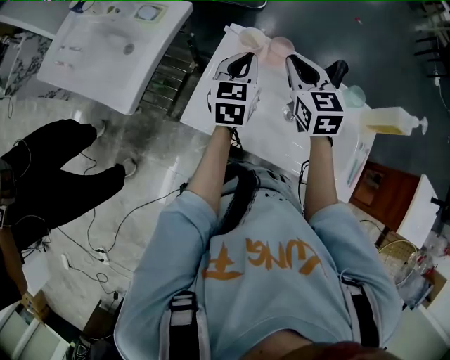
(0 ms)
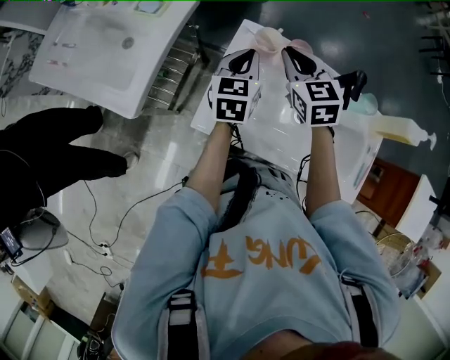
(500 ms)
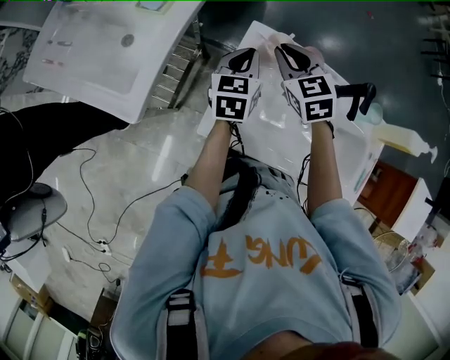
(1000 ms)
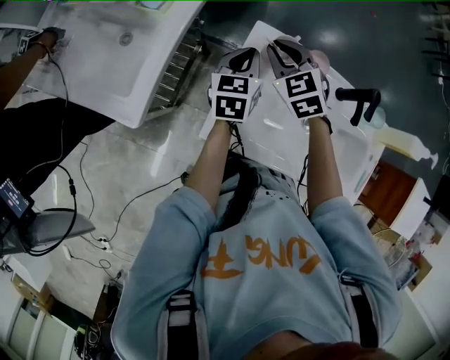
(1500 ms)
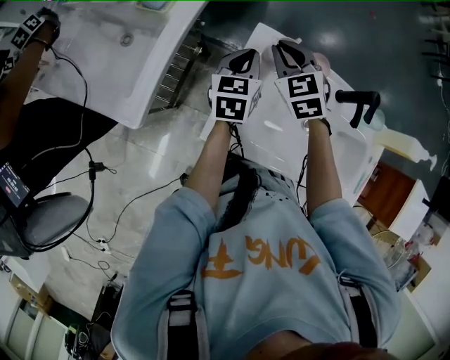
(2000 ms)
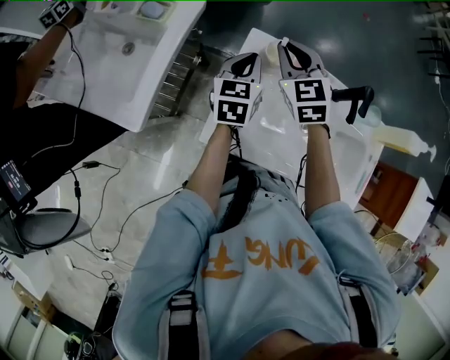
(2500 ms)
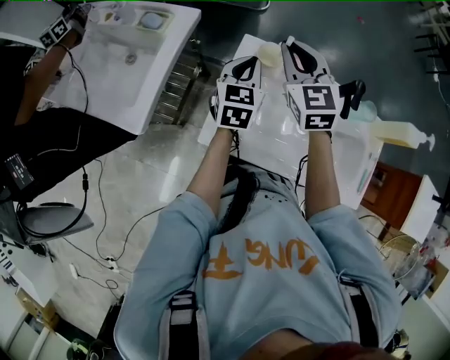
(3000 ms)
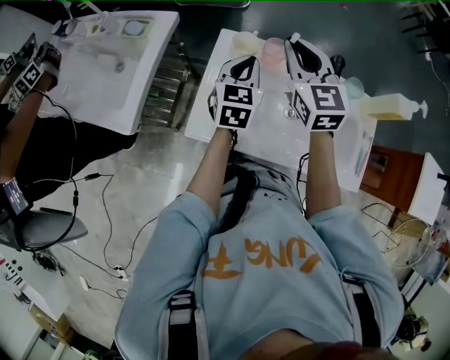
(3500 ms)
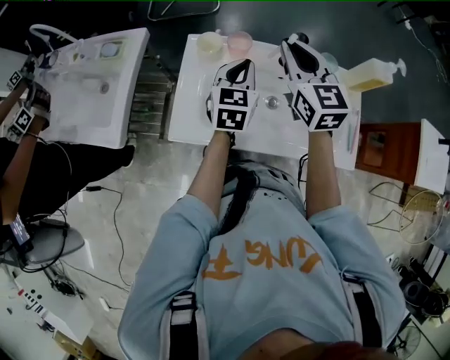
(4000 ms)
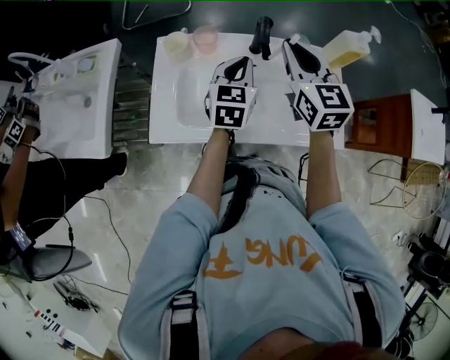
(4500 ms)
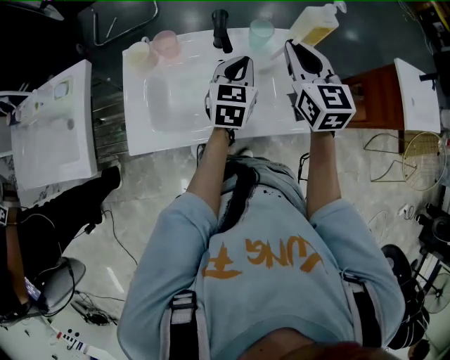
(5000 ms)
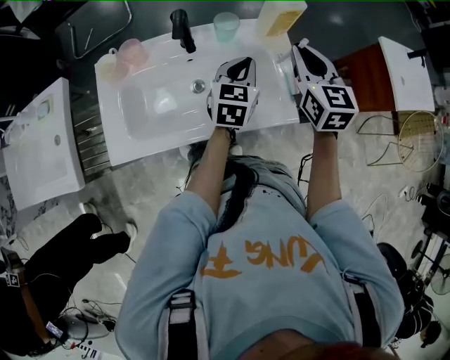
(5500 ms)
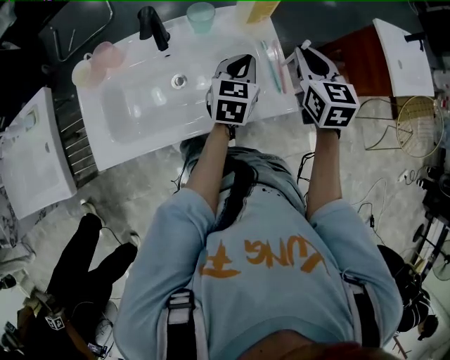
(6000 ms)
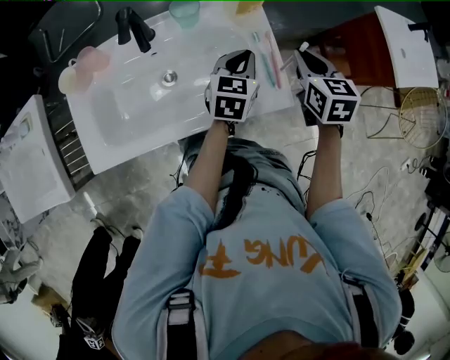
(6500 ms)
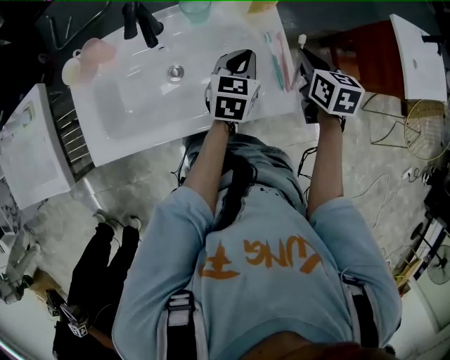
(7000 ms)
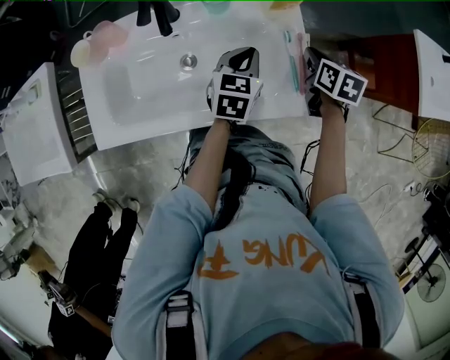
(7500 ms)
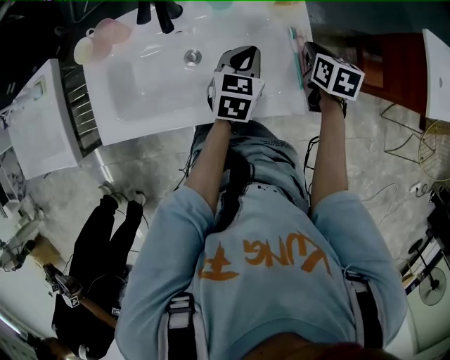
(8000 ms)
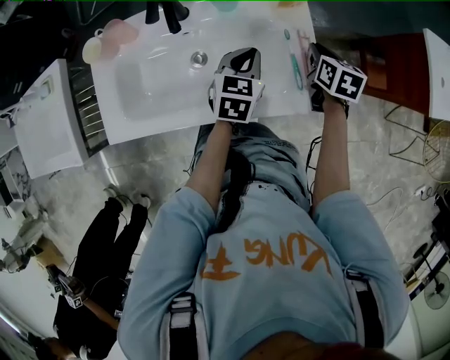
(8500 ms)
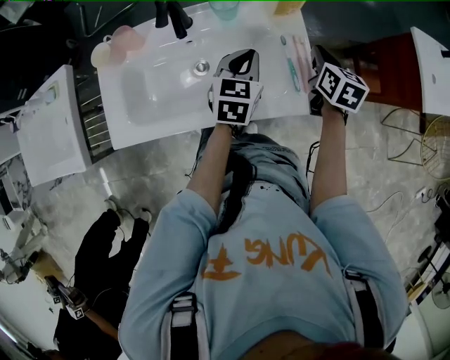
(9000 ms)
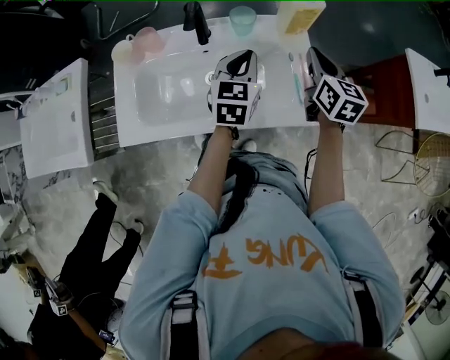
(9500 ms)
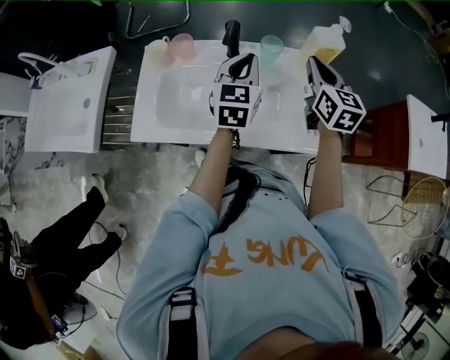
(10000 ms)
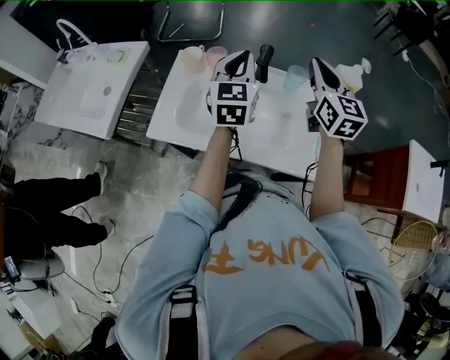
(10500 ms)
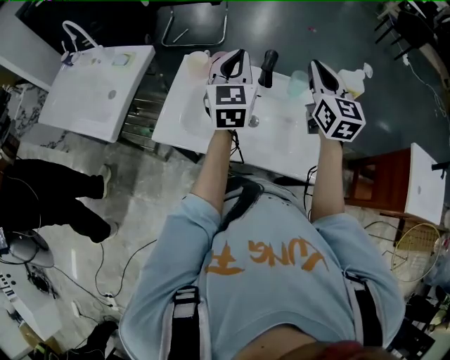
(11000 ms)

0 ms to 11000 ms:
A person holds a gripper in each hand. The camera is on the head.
0 ms to 2000 ms: The two grippers go roughly 15 cm to the left, forward and downward. The right gripper swivels some 20 degrees.
2000 ms to 3500 ms: The right gripper shifts approximately 20 cm upward, to the right and backward, and rotates about 30 degrees; the left gripper travels to the right, upward and backward by some 15 cm.
3500 ms to 5500 ms: The right gripper moves roughly 40 cm, and changes its angle by approximately 30 degrees. Meanwhile the left gripper moves some 40 cm, and turns by some 30 degrees.
5500 ms to 7500 ms: The left gripper moves downward, about 10 cm. Meanwhile the right gripper heads downward and to the right, covering approximately 25 cm, and rotates approximately 40 degrees.
7500 ms to 9000 ms: The right gripper heads upward, covering roughly 5 cm. Meanwhile the left gripper shifts by some 5 cm.
9000 ms to 11000 ms: The left gripper moves roughly 35 cm, and turns by roughly 40 degrees; the right gripper moves some 35 cm, and tips its fingers upward by approximately 30 degrees.

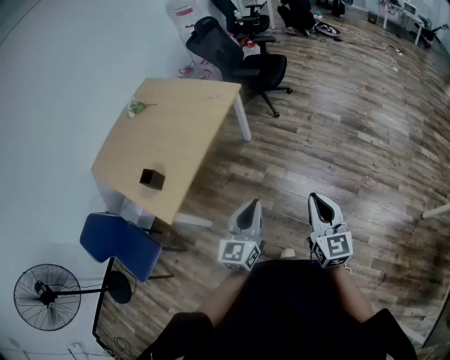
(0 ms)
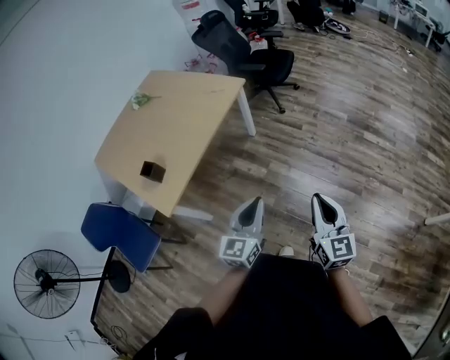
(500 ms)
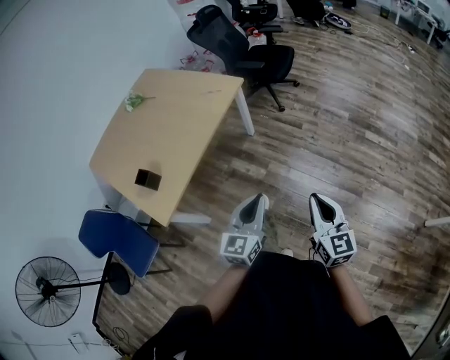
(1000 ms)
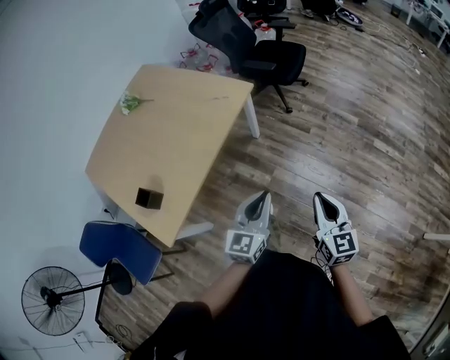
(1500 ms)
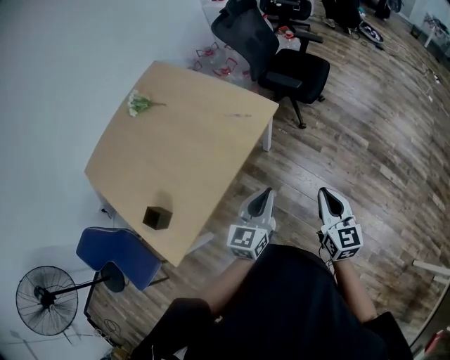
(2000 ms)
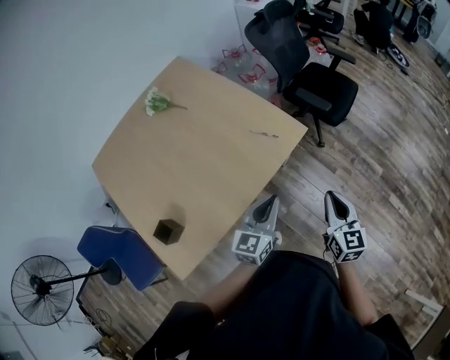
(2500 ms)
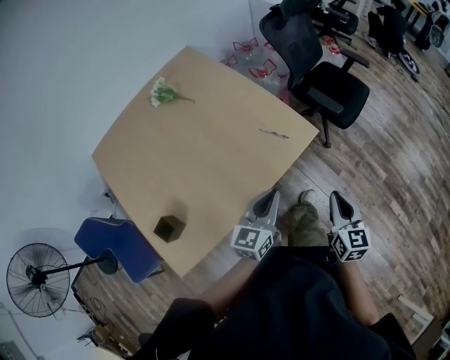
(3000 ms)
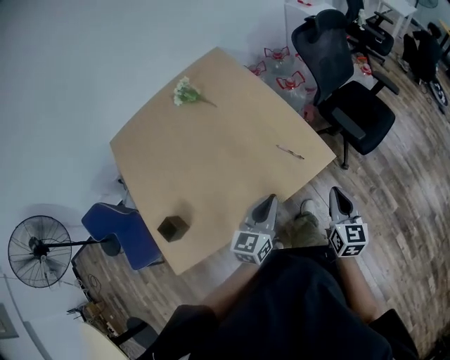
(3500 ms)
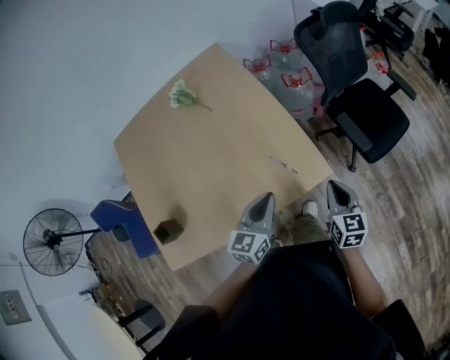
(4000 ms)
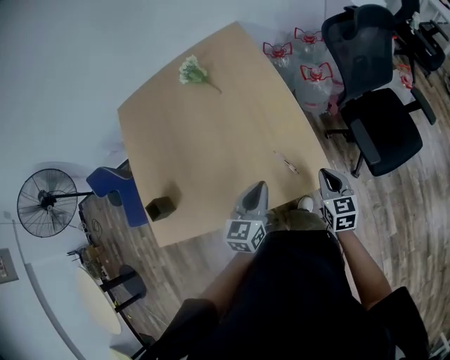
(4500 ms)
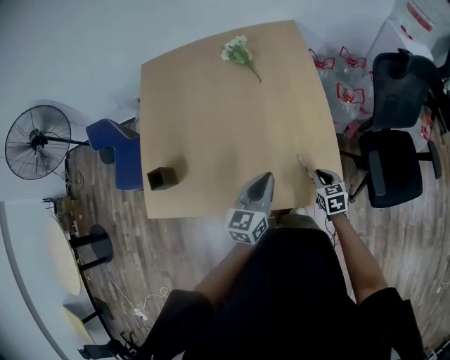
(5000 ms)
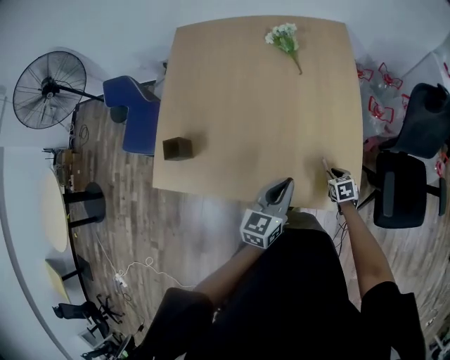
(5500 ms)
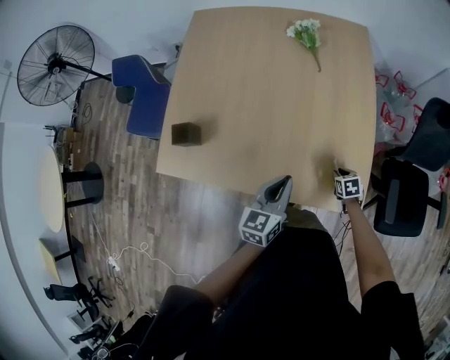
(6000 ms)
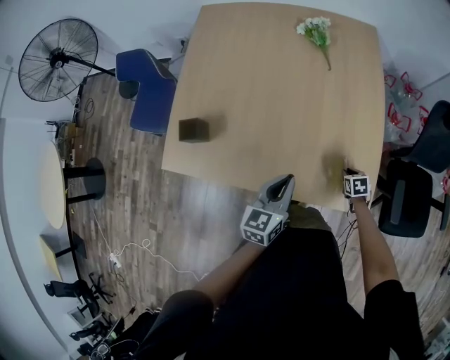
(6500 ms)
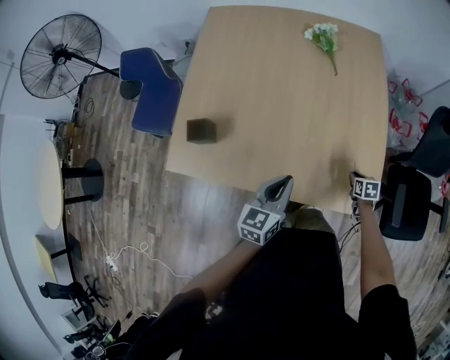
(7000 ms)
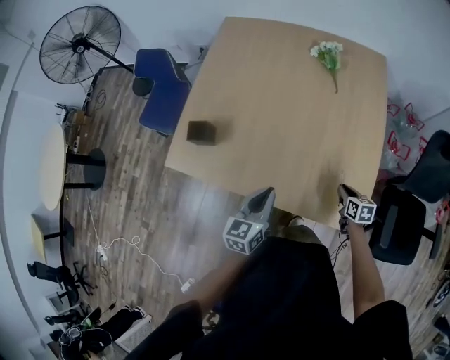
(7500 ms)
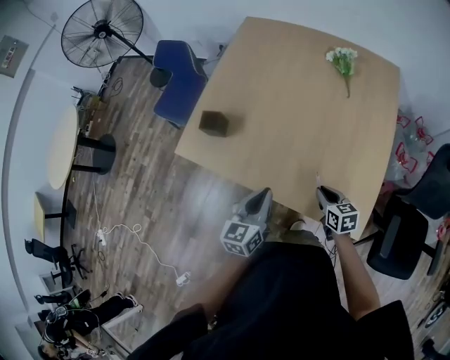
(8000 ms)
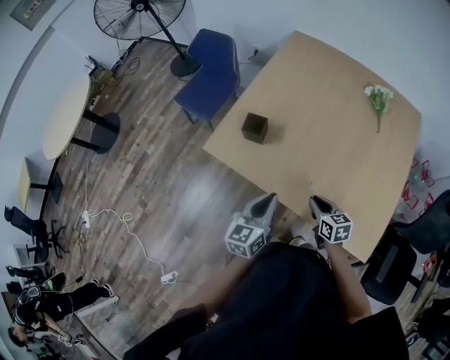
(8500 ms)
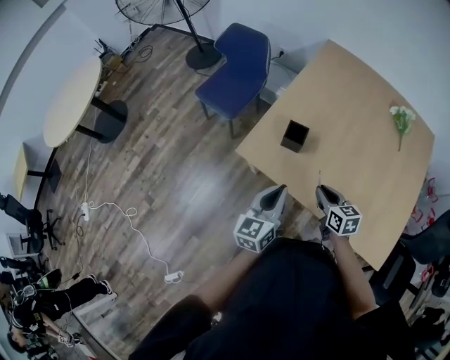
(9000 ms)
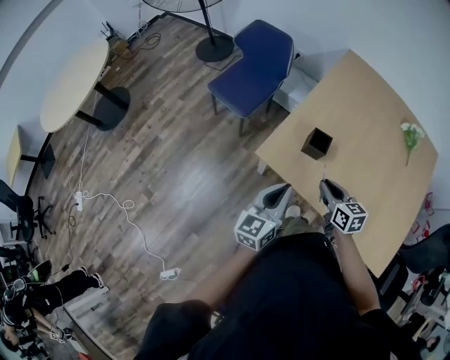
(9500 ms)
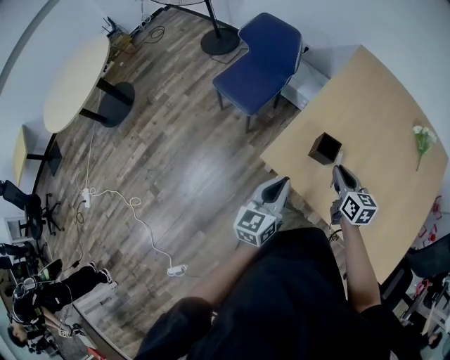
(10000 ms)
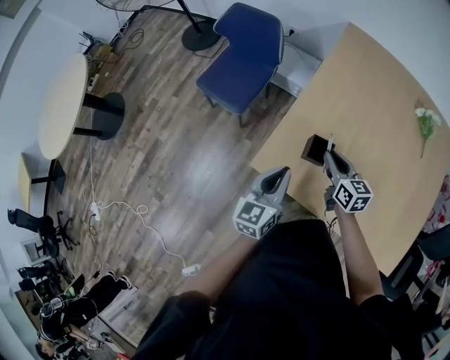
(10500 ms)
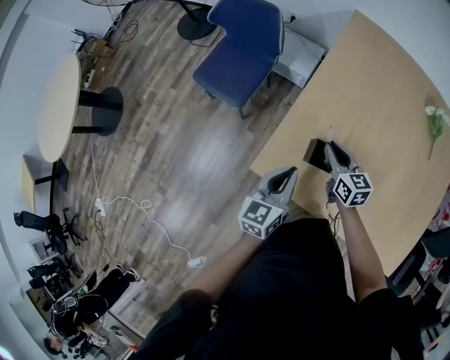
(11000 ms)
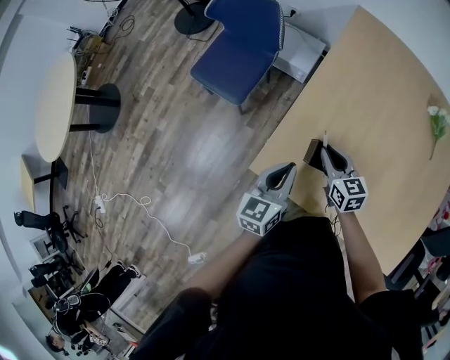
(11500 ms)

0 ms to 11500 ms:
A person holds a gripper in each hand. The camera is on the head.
0 ms to 2000 ms: The pair of grippers is taken forward, some 50 cm.
2000 ms to 4000 ms: The right gripper ends up approximately 50 cm from where it was, and turns by approximately 30 degrees. Meanwhile the left gripper changes place by roughly 40 cm, and swivels approximately 30 degrees.
4000 ms to 6000 ms: The left gripper ends up some 20 cm from where it was, and rotates some 40 degrees, while the right gripper shifts roughly 25 cm downward, angles its fingers downward, by approximately 40 degrees, and opens its fingers.
6000 ms to 7500 ms: The left gripper goes some 10 cm to the left. The right gripper goes approximately 10 cm upward, and rotates approximately 20 degrees.
7500 ms to 9500 ms: The pair of grippers is taken to the left, about 60 cm. The right gripper swivels about 30 degrees. Meanwhile the left gripper rotates about 20 degrees.
9500 ms to 11500 ms: Both grippers travel together forward, approximately 25 cm.

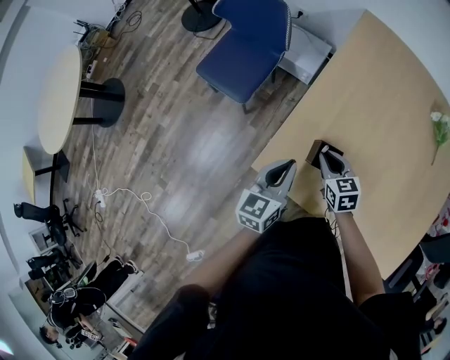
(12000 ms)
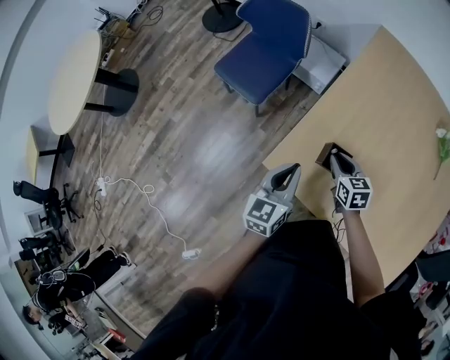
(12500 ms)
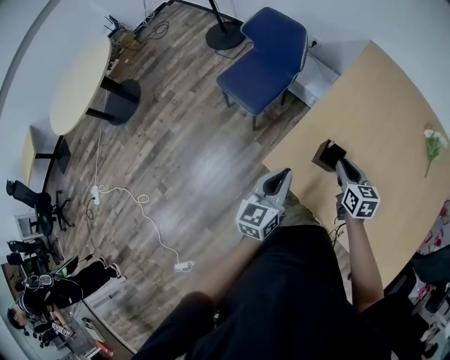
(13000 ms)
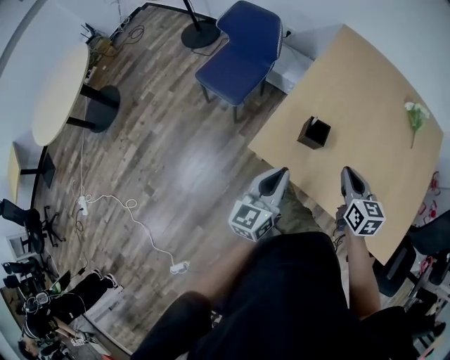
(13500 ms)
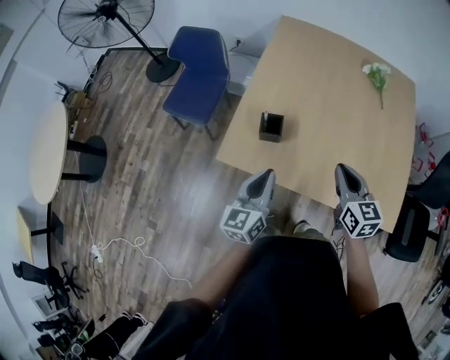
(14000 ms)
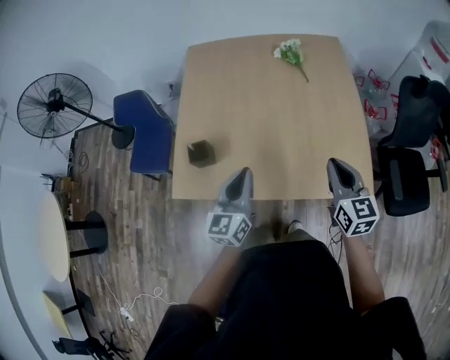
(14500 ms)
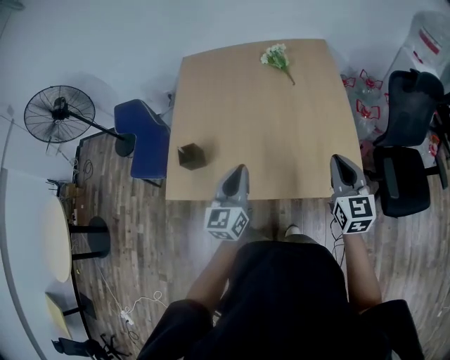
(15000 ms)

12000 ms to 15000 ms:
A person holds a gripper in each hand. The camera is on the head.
12000 ms to 13500 ms: The right gripper goes about 25 cm backward and upward. Meanwhile the left gripper heads backward, covering about 20 cm.
13500 ms to 15000 ms: The two grippers travel together, some 50 cm. The left gripper turns by roughly 30 degrees. Meanwhile the right gripper turns by some 40 degrees.

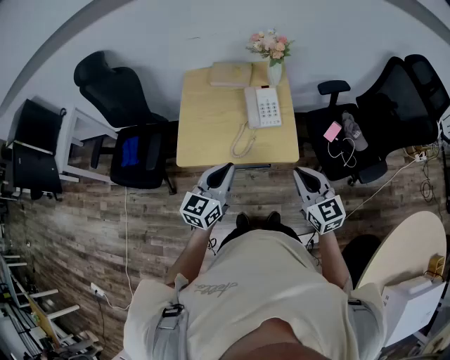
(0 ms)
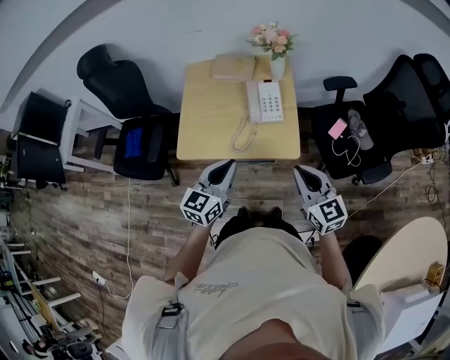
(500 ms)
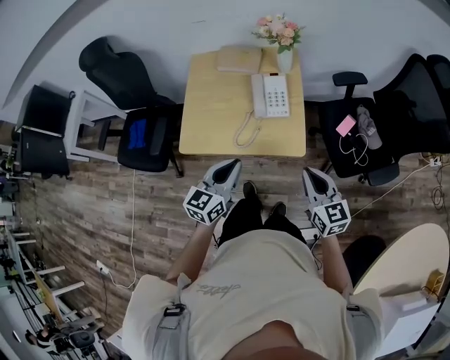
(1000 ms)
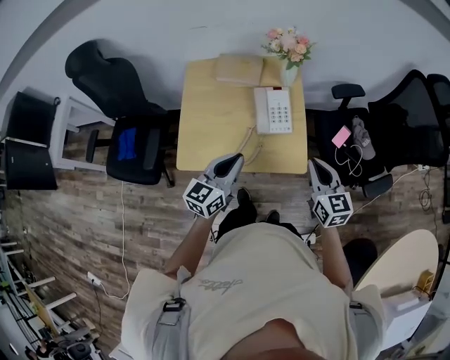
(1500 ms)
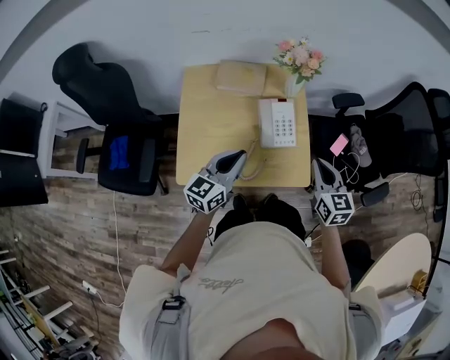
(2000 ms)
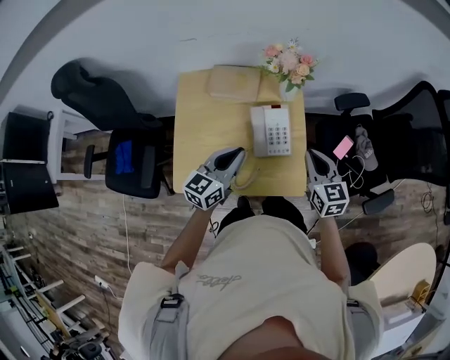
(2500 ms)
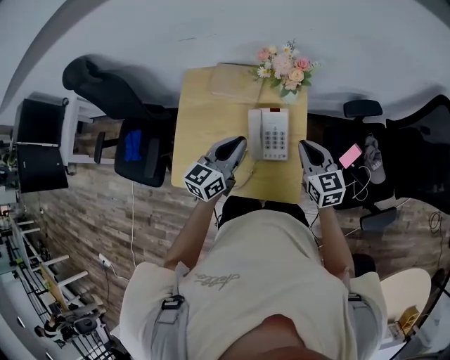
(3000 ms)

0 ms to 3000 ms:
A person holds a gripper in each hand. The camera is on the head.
0 ms to 1500 ms: The grippers both shift forward by roughly 10 cm.
1500 ms to 3000 ms: Both grippers move forward, some 20 cm.
